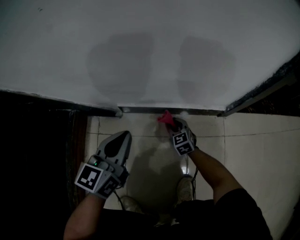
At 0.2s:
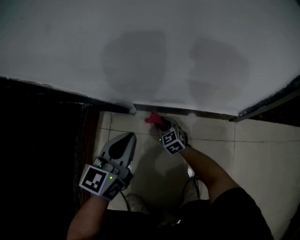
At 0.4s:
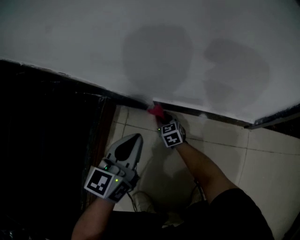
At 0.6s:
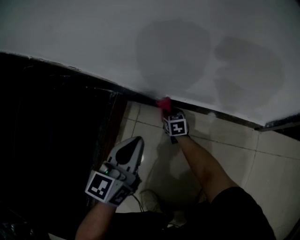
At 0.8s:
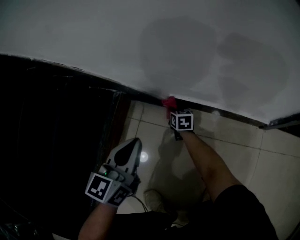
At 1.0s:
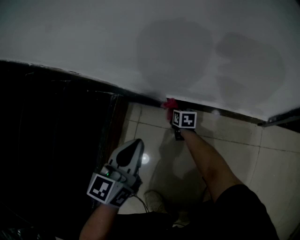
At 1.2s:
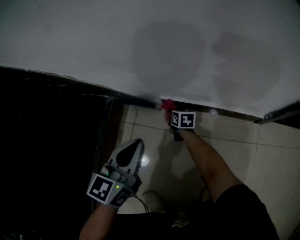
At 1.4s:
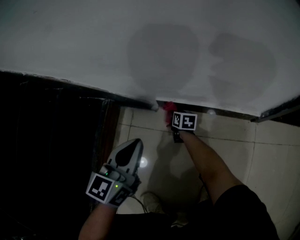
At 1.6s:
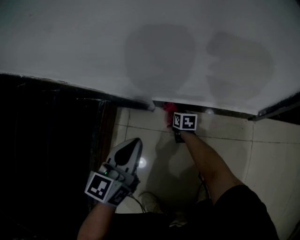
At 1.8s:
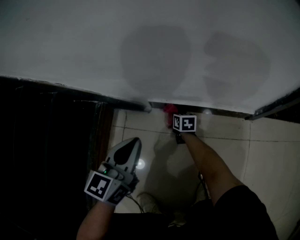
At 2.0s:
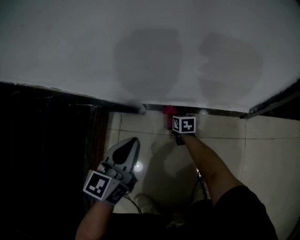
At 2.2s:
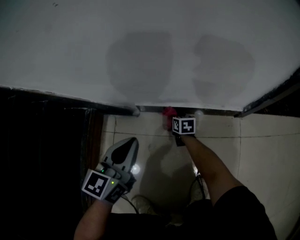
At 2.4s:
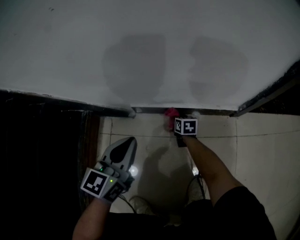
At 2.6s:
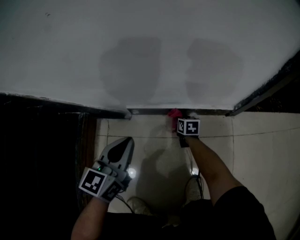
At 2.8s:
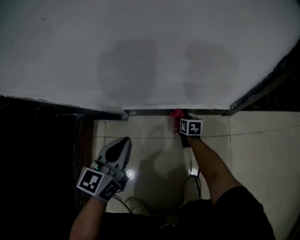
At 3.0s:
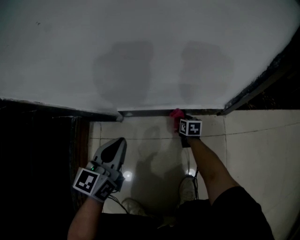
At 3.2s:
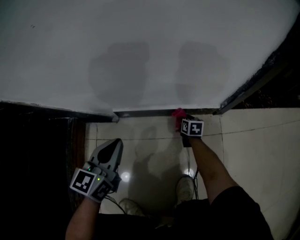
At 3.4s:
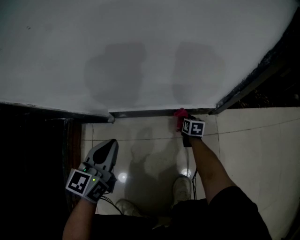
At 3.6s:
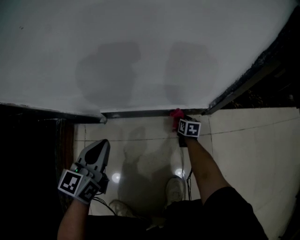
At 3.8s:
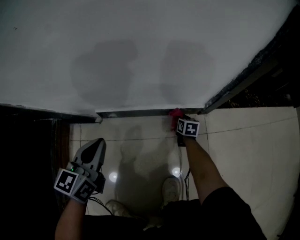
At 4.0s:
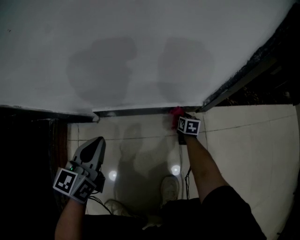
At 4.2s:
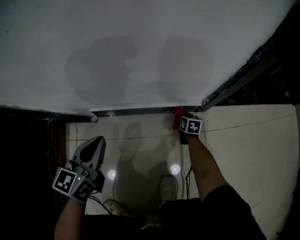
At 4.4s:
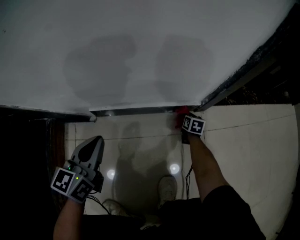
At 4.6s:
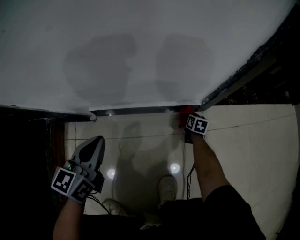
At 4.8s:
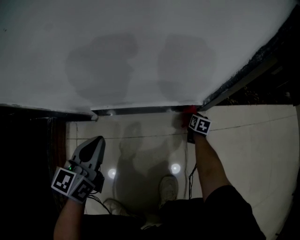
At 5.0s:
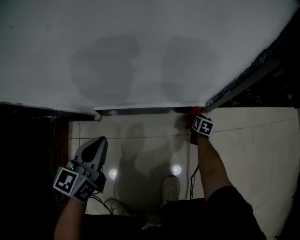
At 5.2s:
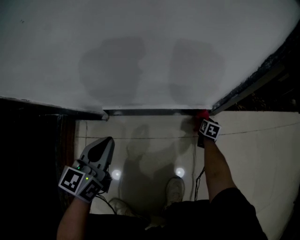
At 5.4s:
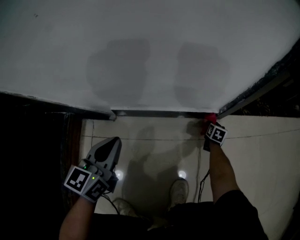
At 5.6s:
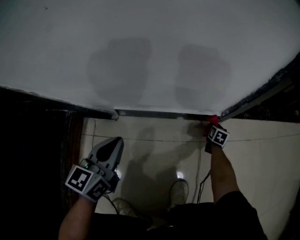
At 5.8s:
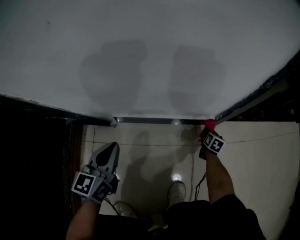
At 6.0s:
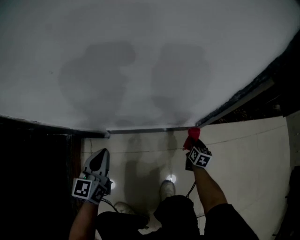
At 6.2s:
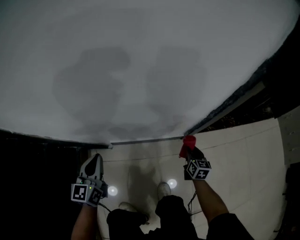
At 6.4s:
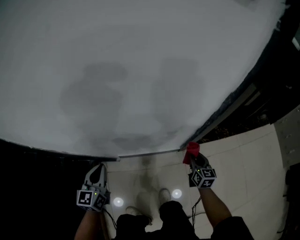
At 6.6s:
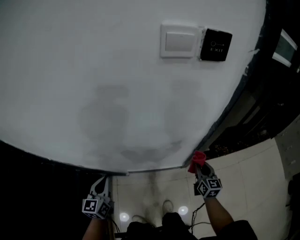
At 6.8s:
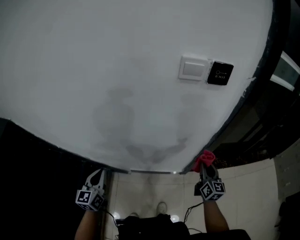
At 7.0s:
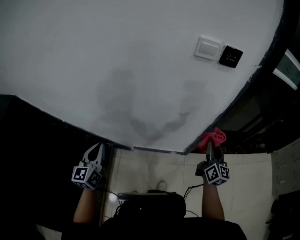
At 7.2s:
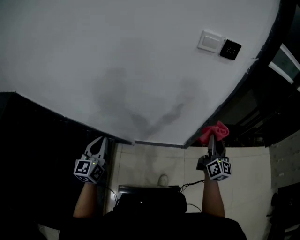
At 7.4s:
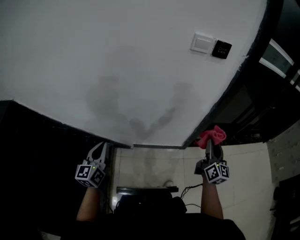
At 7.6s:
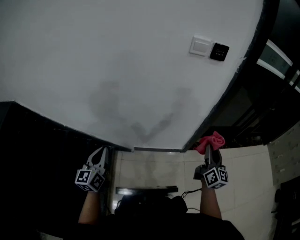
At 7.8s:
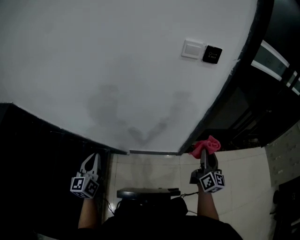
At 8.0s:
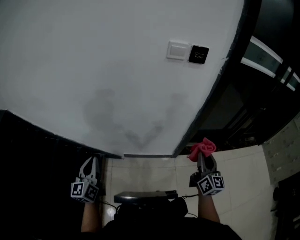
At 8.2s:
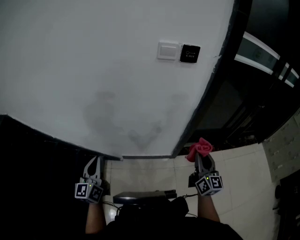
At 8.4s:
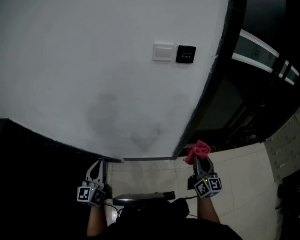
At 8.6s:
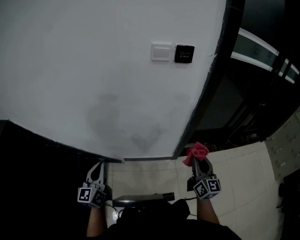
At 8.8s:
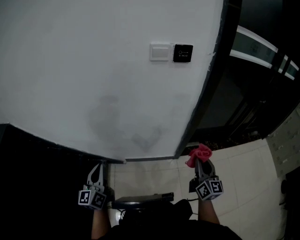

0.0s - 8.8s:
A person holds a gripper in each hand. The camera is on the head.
0.0s - 1.4s: The right gripper goes roughly 20 cm to the left and forward, and rotates around the line of its fingers by some 40 degrees, clockwise from behind; the left gripper moves to the left, approximately 10 cm.
1.4s - 3.0s: The right gripper travels to the right by about 25 cm. Meanwhile the left gripper moves to the right, some 10 cm.
3.0s - 4.4s: The right gripper moves to the right, approximately 20 cm.
4.4s - 5.8s: The left gripper goes approximately 5 cm to the left; the right gripper travels upward and to the right by about 5 cm.
5.8s - 7.4s: Both grippers move upward, some 80 cm. The right gripper tips its fingers upward by about 50 degrees.
7.4s - 8.8s: The grippers both shift to the right by roughly 10 cm.

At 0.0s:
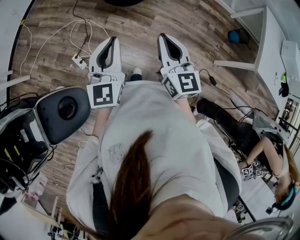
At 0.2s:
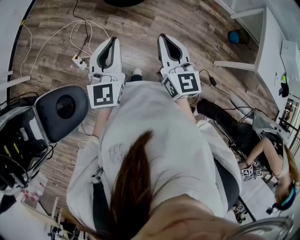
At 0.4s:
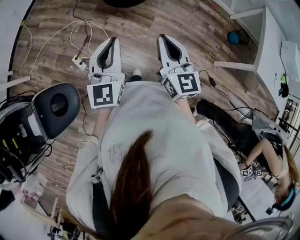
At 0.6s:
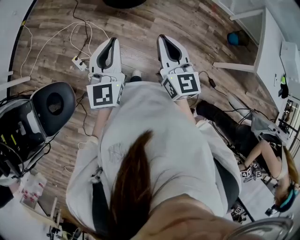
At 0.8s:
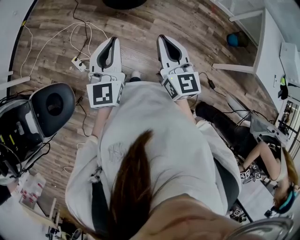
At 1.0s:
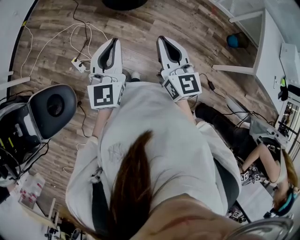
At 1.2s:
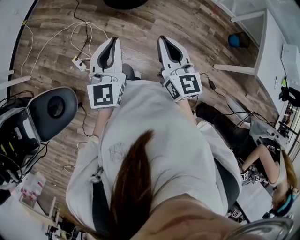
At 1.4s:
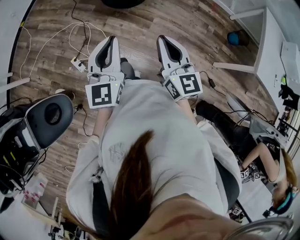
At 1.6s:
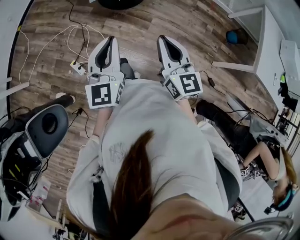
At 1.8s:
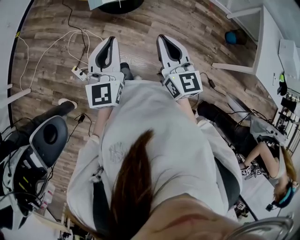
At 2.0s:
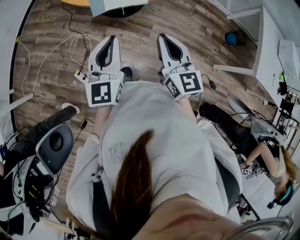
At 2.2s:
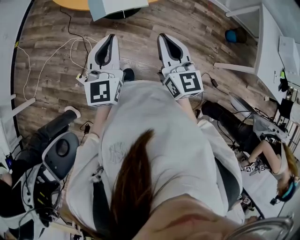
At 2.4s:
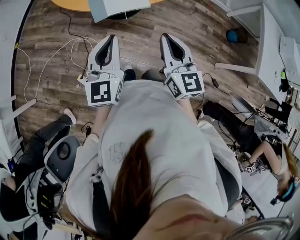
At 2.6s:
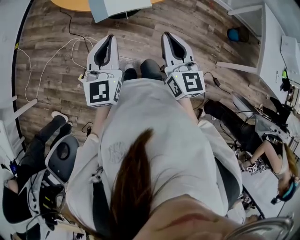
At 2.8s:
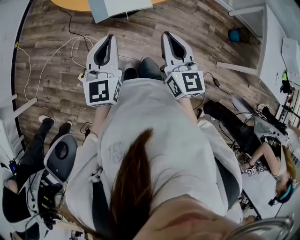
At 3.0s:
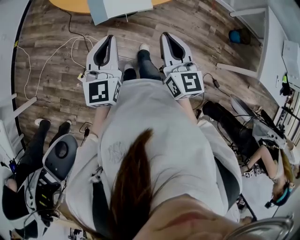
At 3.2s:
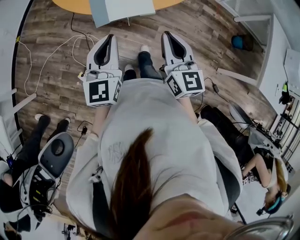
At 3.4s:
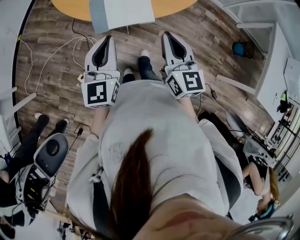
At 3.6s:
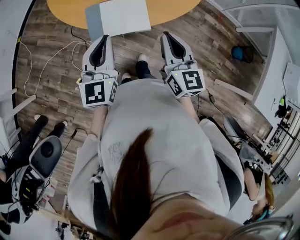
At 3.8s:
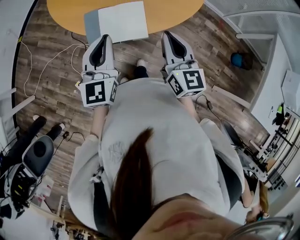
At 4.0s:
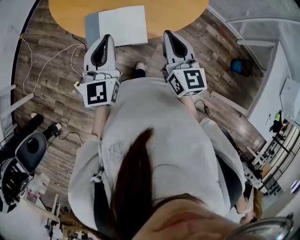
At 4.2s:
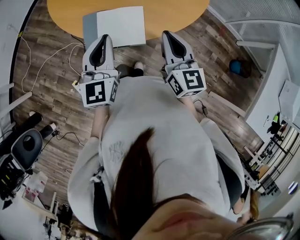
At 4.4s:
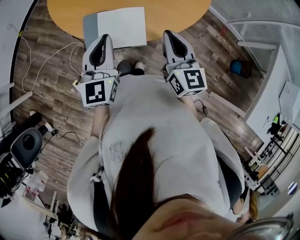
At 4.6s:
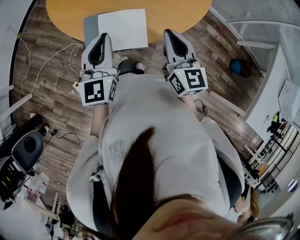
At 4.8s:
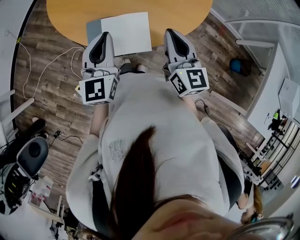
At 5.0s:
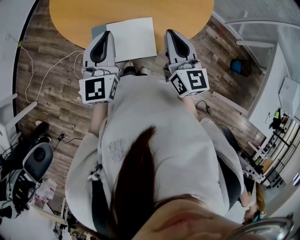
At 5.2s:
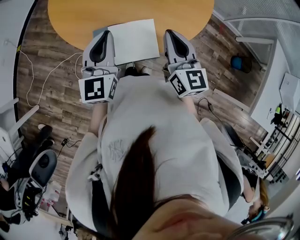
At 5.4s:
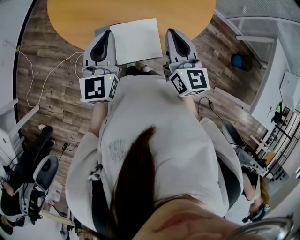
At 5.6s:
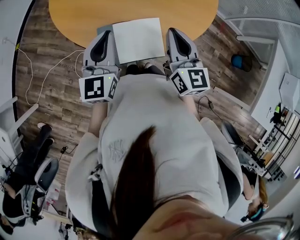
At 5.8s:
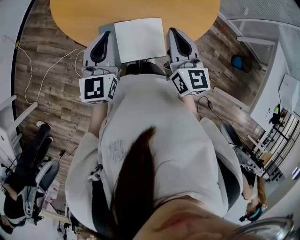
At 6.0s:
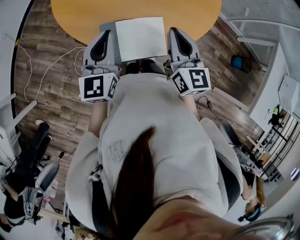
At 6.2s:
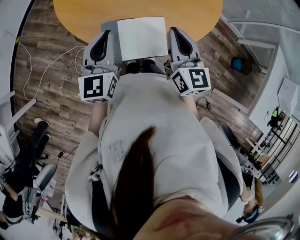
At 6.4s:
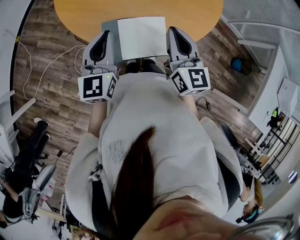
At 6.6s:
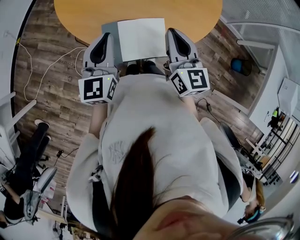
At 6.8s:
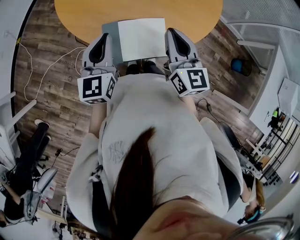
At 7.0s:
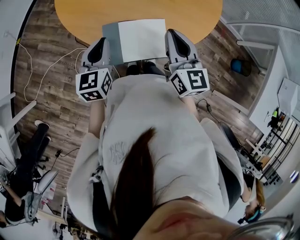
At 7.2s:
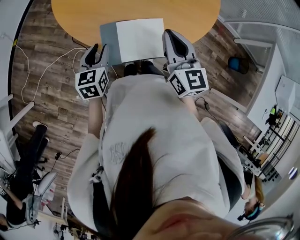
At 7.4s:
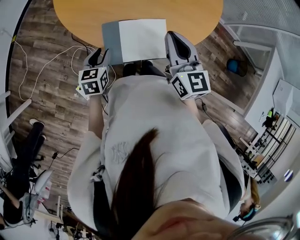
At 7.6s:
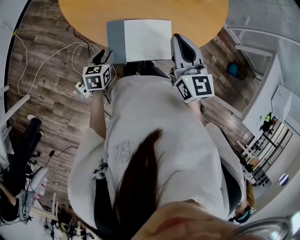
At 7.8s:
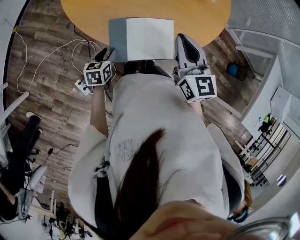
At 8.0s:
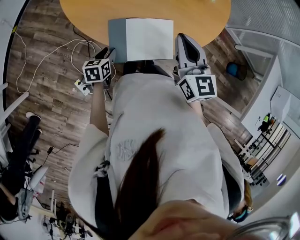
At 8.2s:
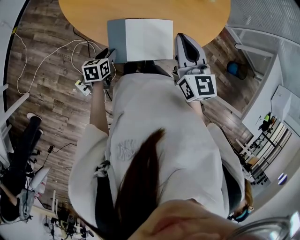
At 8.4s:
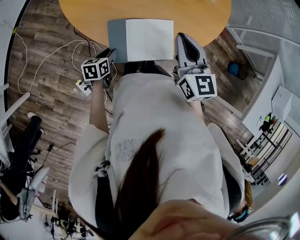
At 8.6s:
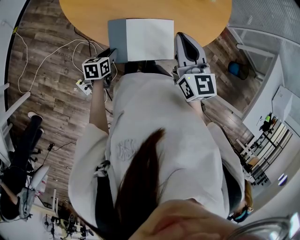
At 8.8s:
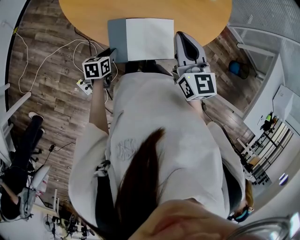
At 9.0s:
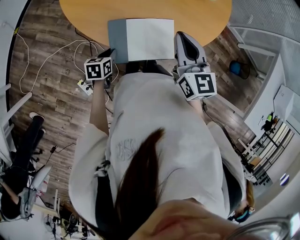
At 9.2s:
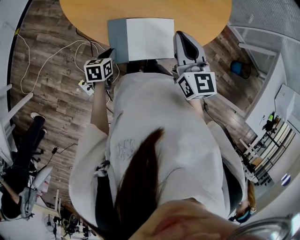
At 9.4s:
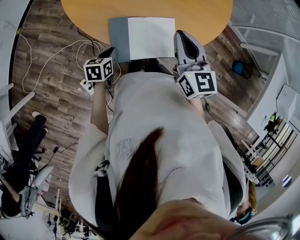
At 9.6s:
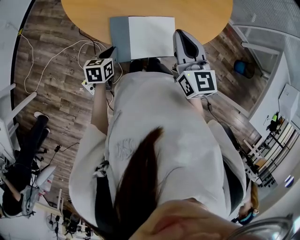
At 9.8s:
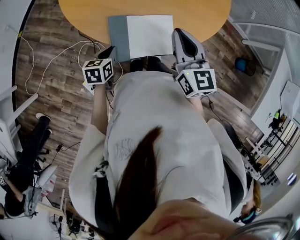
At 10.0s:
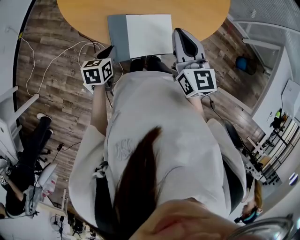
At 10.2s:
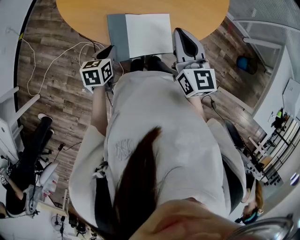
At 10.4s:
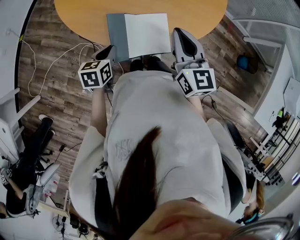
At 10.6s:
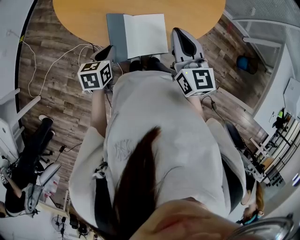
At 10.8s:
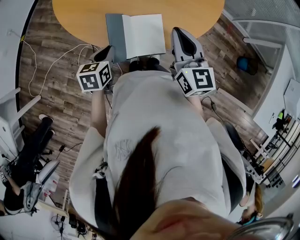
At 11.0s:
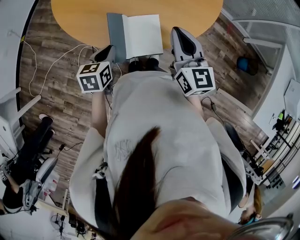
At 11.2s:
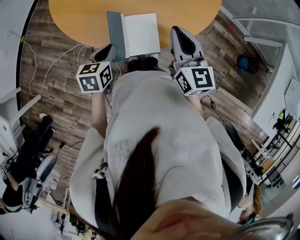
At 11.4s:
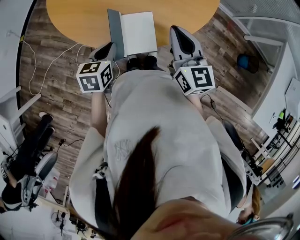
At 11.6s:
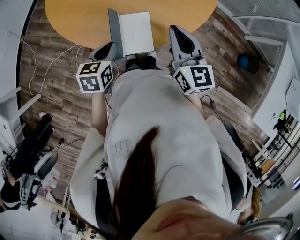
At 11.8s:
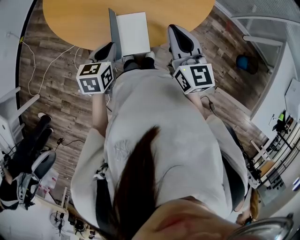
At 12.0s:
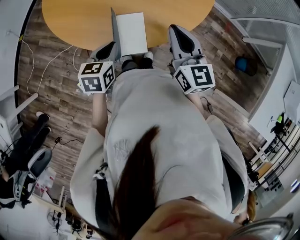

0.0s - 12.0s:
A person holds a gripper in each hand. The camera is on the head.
0.0s - 1.6s: The right gripper ends up about 5 cm from where it was; the left gripper heads forward, covering some 5 cm.
1.6s - 3.0s: The two grippers go some 15 cm forward.
3.0s - 4.4s: Both grippers move forward, roughly 20 cm.
4.4s - 6.0s: The grippers both shift to the left and forward by approximately 15 cm.
6.0s - 7.6s: The left gripper goes approximately 25 cm downward, angles its fingers downward, by some 40 degrees, and opens.
7.6s - 9.0s: The grippers move only a little.
9.0s - 10.4s: The left gripper shifts approximately 10 cm upward.
10.4s - 12.0s: The left gripper shifts some 15 cm to the right and upward. Meanwhile the right gripper goes about 10 cm to the right.

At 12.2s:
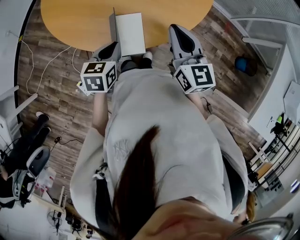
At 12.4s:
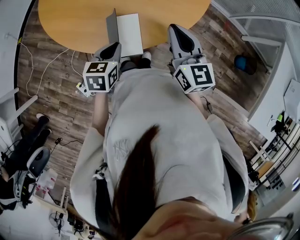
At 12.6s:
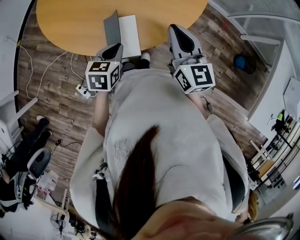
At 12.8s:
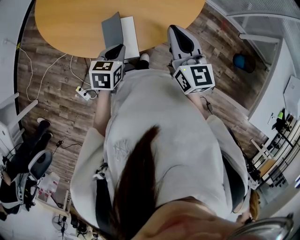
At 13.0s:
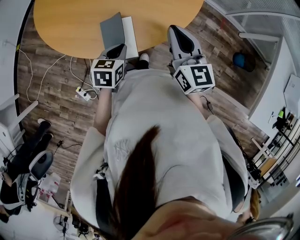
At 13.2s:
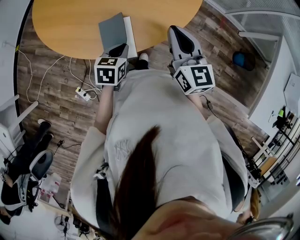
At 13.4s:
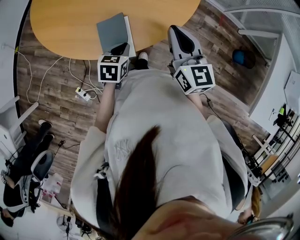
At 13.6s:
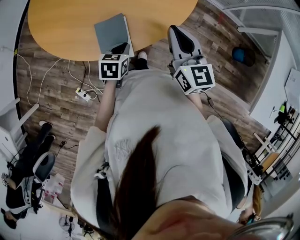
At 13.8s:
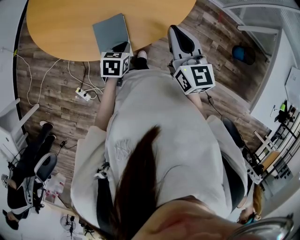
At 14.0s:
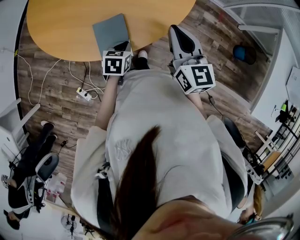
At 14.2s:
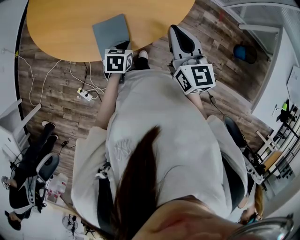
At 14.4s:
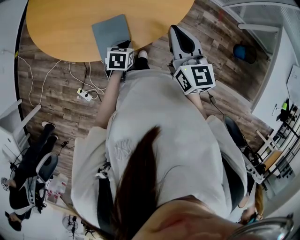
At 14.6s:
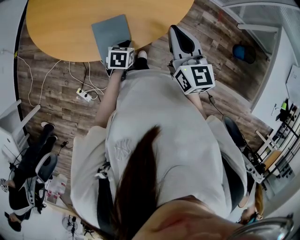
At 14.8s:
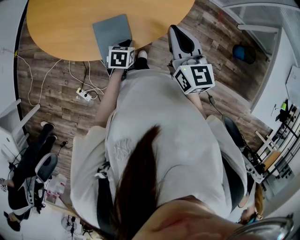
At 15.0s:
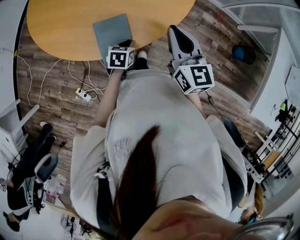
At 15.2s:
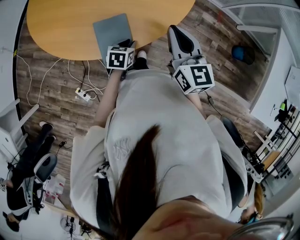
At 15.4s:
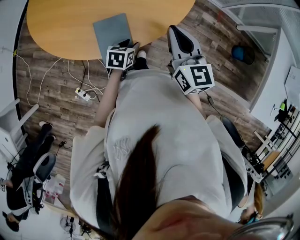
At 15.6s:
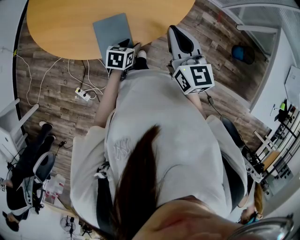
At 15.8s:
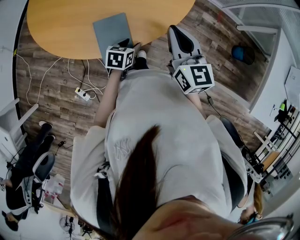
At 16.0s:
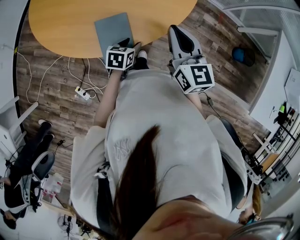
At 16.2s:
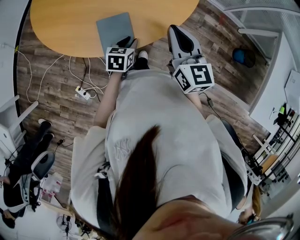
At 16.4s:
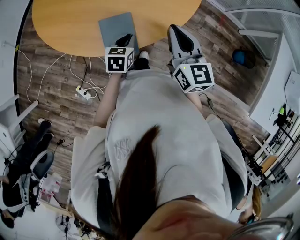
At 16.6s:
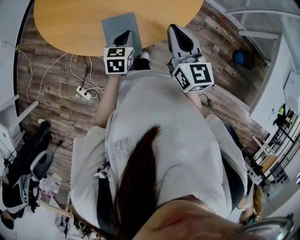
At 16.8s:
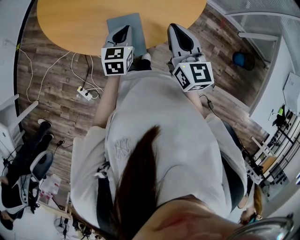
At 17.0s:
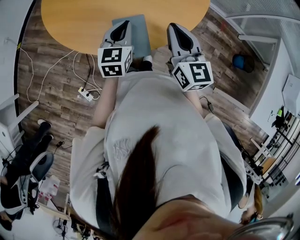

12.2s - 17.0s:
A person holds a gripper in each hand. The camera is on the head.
12.2s - 13.8s: The left gripper goes approximately 15 cm to the right and downward. Meanwhile the right gripper goes some 5 cm to the right.
13.8s - 15.4s: The left gripper opens.
15.4s - 17.0s: The right gripper goes roughly 10 cm to the left; the left gripper goes roughly 20 cm upward and to the left, changes its angle by approximately 40 degrees, and closes its fingers.
